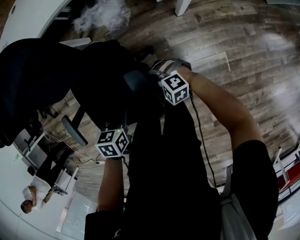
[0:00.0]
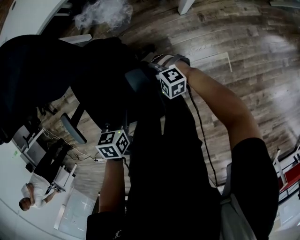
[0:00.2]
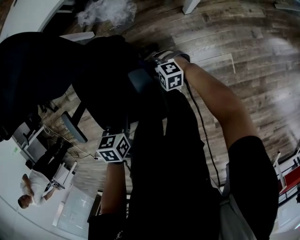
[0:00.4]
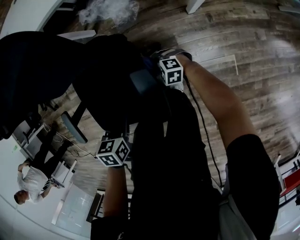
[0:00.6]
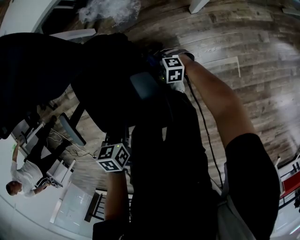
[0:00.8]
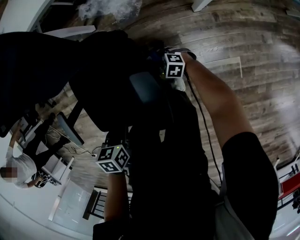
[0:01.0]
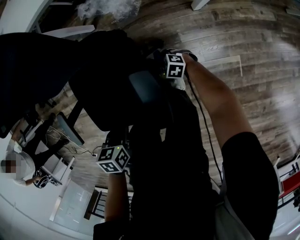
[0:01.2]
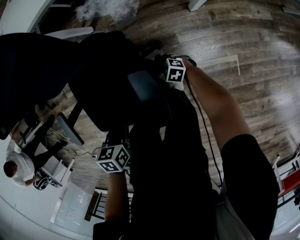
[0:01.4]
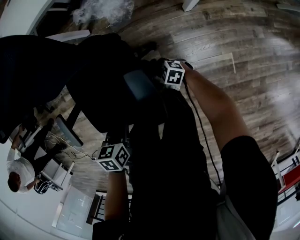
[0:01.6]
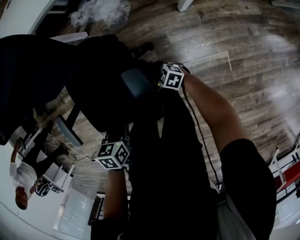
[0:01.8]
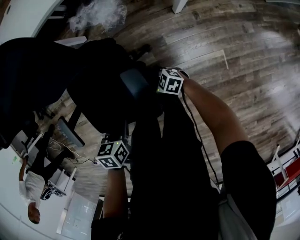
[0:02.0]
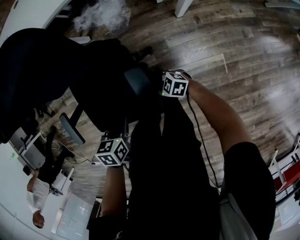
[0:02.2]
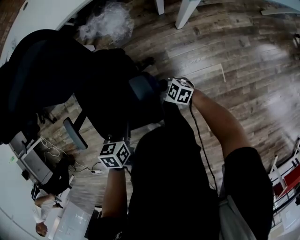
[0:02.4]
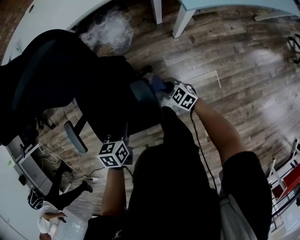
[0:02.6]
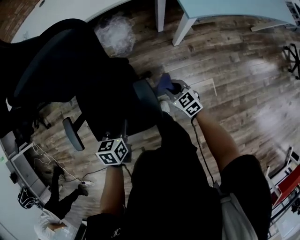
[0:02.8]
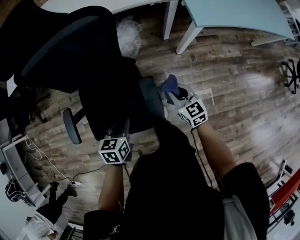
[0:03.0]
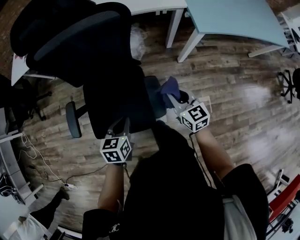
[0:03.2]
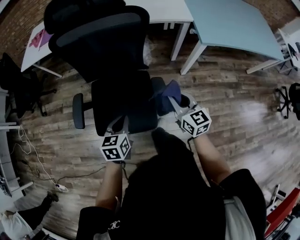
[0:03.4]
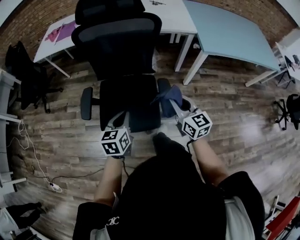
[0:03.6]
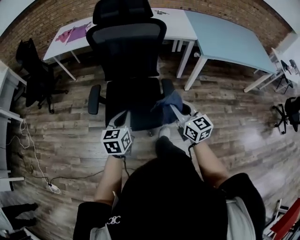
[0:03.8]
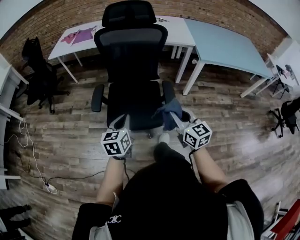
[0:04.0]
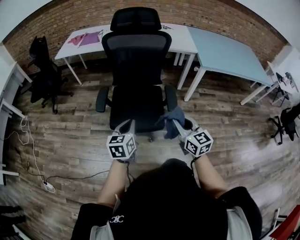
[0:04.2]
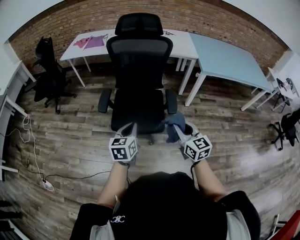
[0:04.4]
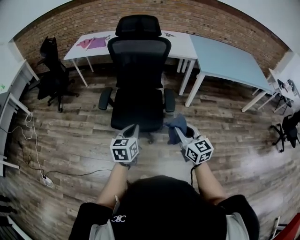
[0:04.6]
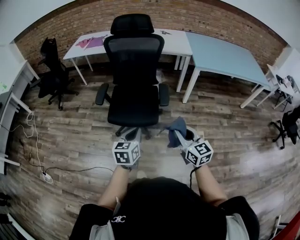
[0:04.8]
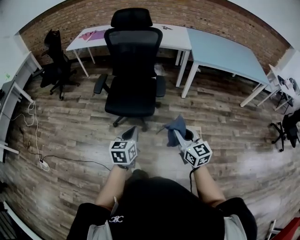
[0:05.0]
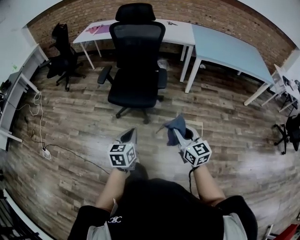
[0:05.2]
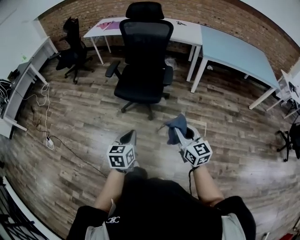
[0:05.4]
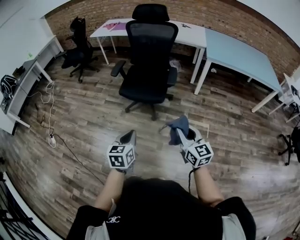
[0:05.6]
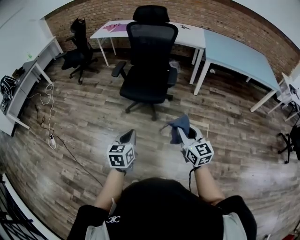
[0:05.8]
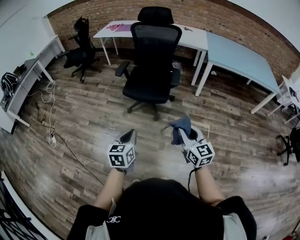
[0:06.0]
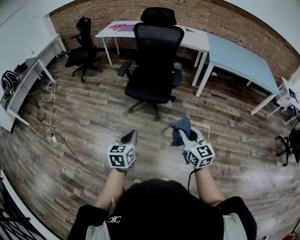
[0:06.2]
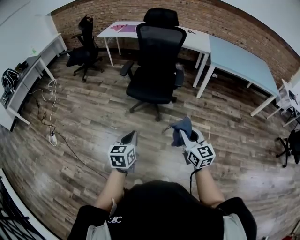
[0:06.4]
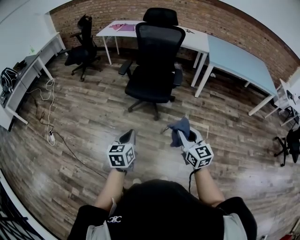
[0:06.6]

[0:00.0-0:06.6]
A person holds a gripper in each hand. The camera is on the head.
0:00.0 to 0:01.6: The right gripper is displaced downward by approximately 15 cm, and changes its angle by roughly 30 degrees, while the left gripper shifts by approximately 5 cm.
0:01.6 to 0:03.2: The left gripper heads upward, covering approximately 15 cm, and swivels roughly 30 degrees, while the right gripper moves upward, roughly 40 cm, and changes its angle by roughly 50 degrees.
0:03.2 to 0:05.0: The pair of grippers is taken backward, approximately 50 cm. The left gripper changes its angle by about 20 degrees.
0:05.0 to 0:06.6: The two grippers go some 20 cm backward and to the left.

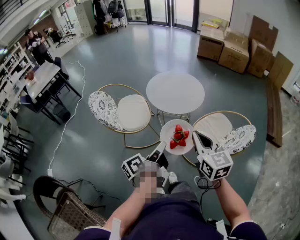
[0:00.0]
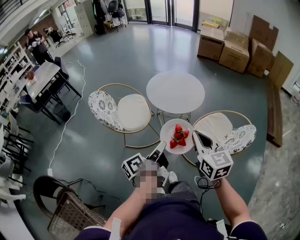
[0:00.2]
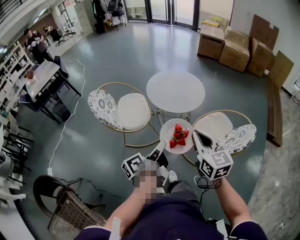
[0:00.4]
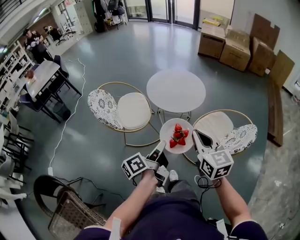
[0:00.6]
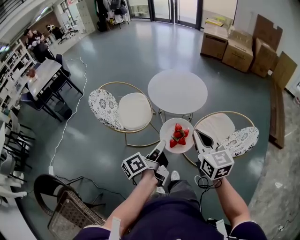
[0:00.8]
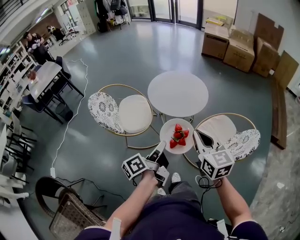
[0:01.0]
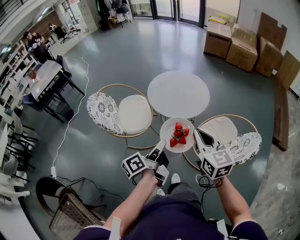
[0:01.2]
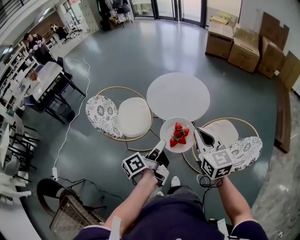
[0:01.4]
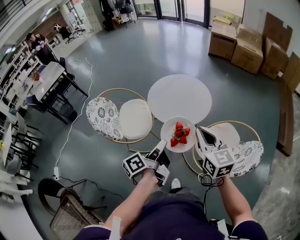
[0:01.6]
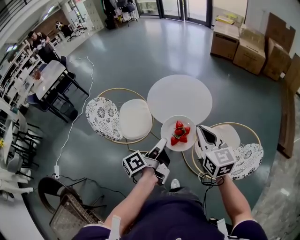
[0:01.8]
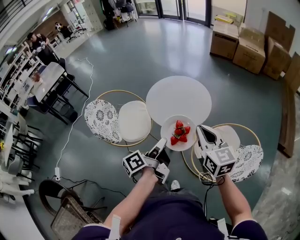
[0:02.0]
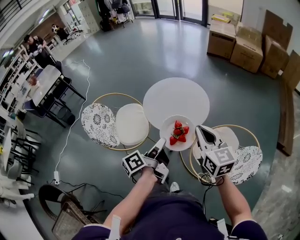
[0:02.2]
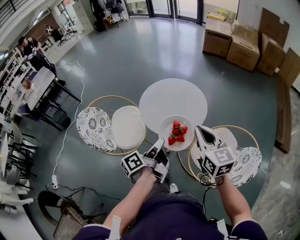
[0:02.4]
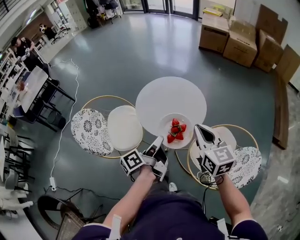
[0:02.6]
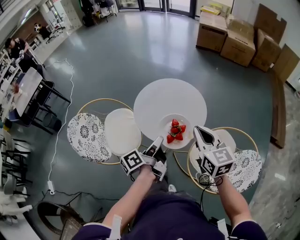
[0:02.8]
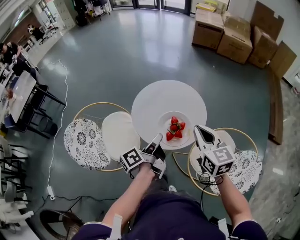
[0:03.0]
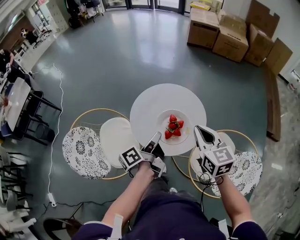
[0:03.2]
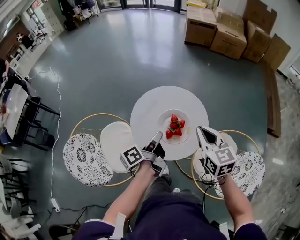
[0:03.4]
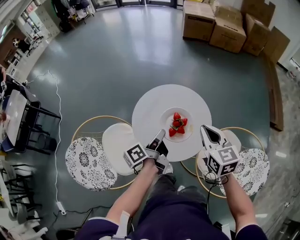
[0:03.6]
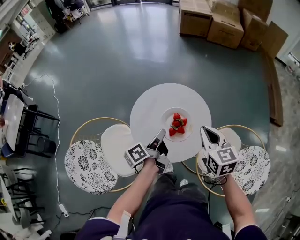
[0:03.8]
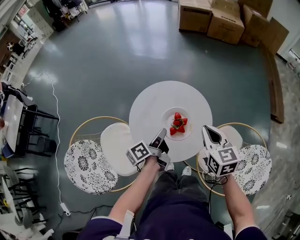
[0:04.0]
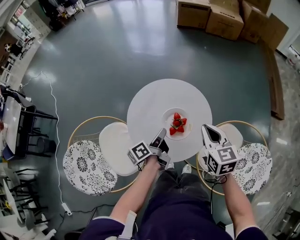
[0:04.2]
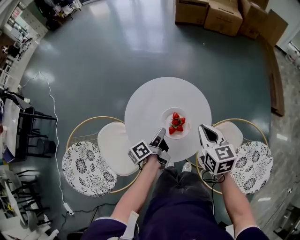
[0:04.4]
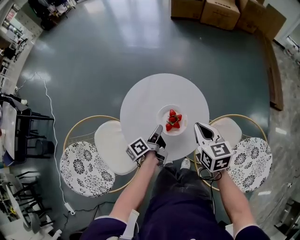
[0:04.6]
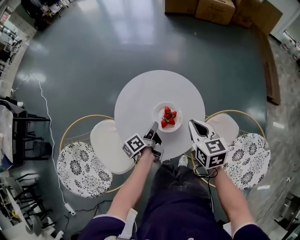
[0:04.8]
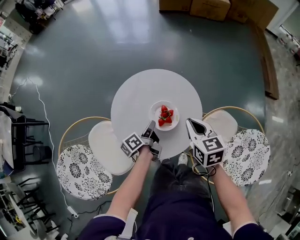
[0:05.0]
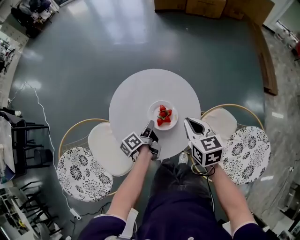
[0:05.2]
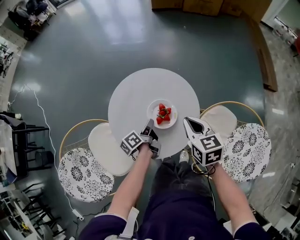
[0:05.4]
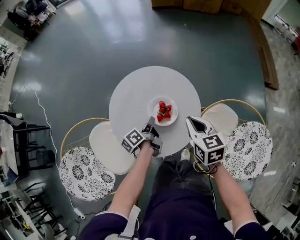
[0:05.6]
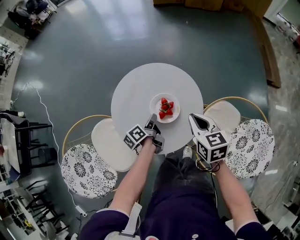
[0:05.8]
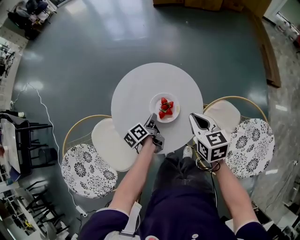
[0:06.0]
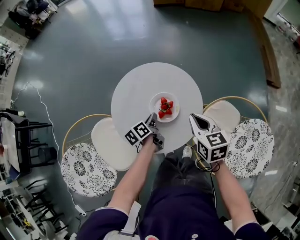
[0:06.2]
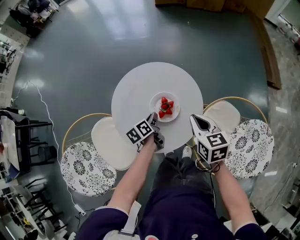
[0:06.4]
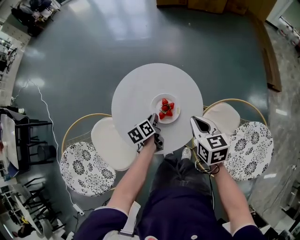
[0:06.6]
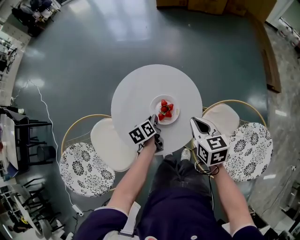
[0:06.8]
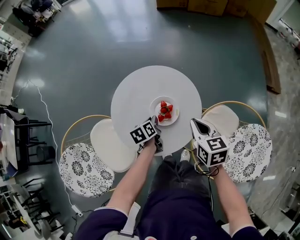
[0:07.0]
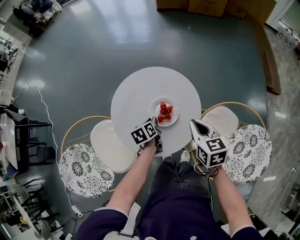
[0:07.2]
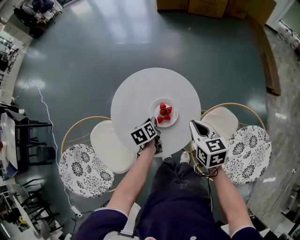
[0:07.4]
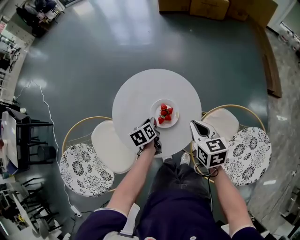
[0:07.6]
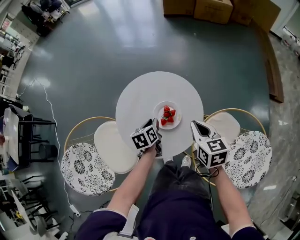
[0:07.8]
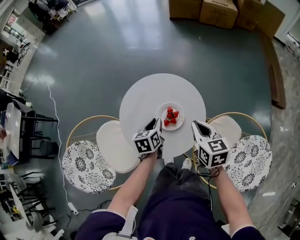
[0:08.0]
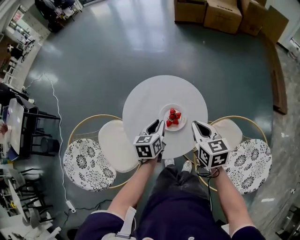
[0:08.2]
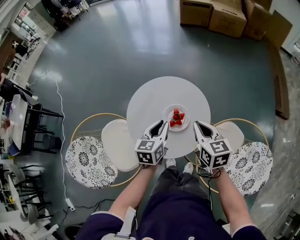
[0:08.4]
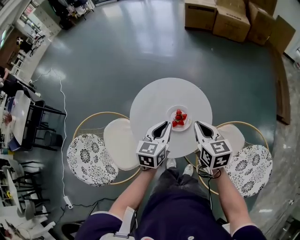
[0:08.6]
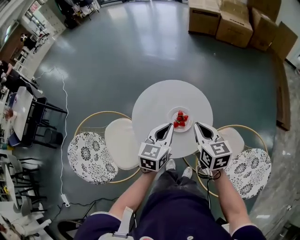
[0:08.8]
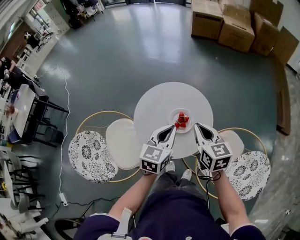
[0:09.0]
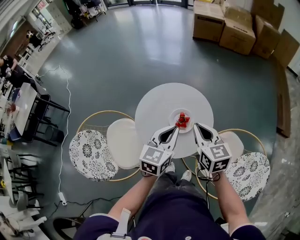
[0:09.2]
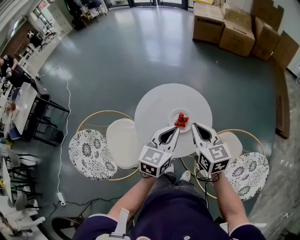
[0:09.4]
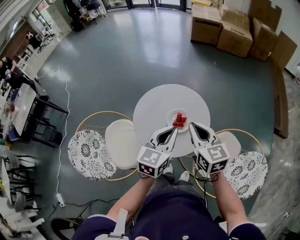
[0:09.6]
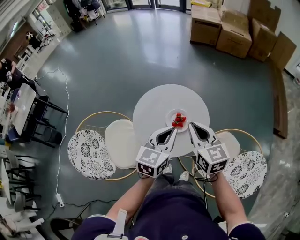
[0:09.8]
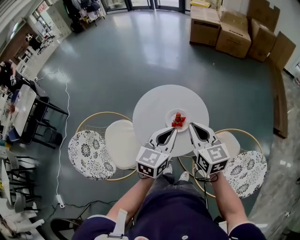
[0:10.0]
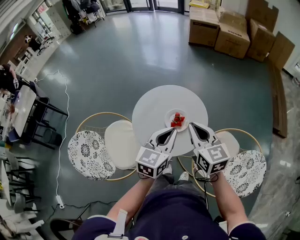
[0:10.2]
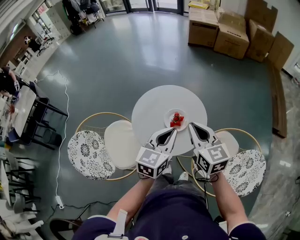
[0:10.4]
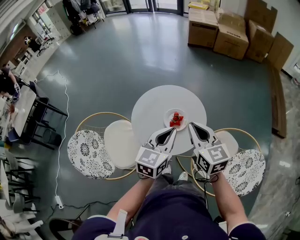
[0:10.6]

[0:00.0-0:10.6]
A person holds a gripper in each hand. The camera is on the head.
0:00.0 to 0:01.6: Both grippers move forward, approximately 15 cm.
0:01.6 to 0:03.0: The grippers both shift forward by some 20 cm.
0:03.0 to 0:04.6: Both grippers travel together downward and forward, approximately 20 cm. The right gripper turns by some 20 degrees.
0:04.6 to 0:06.0: The left gripper is displaced downward by approximately 5 cm.
0:06.0 to 0:07.6: The left gripper turns by about 30 degrees.
0:07.6 to 0:09.0: The right gripper moves upward and to the left, roughly 10 cm; the left gripper heads upward, covering roughly 20 cm, and swivels roughly 40 degrees.
0:09.0 to 0:10.6: The left gripper moves backward and upward, some 10 cm; the right gripper heads upward, covering roughly 5 cm.

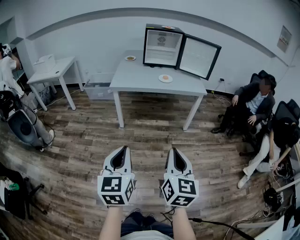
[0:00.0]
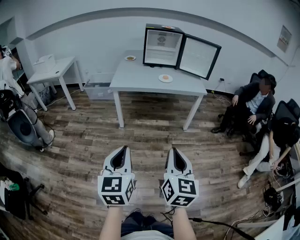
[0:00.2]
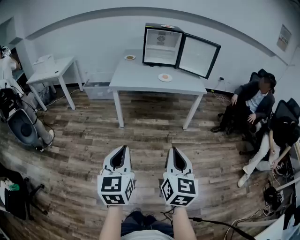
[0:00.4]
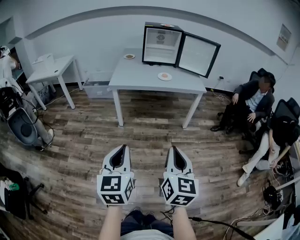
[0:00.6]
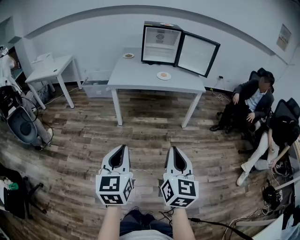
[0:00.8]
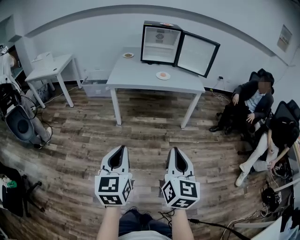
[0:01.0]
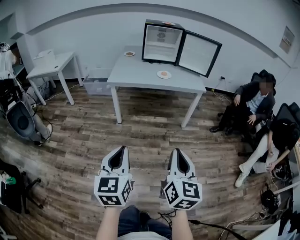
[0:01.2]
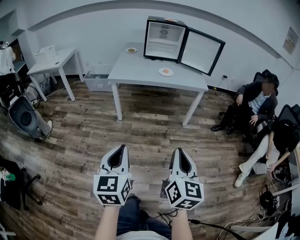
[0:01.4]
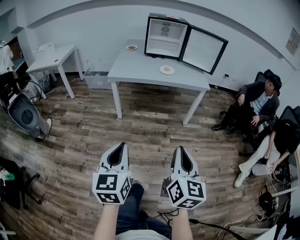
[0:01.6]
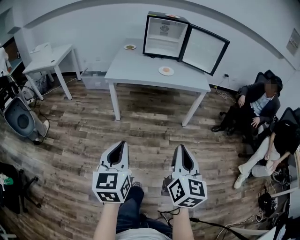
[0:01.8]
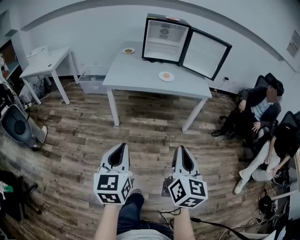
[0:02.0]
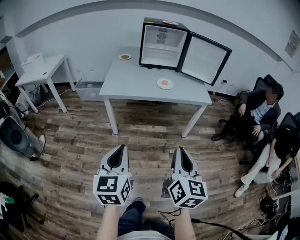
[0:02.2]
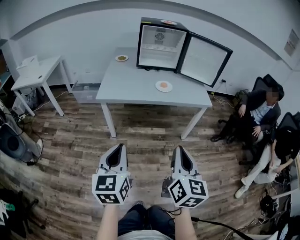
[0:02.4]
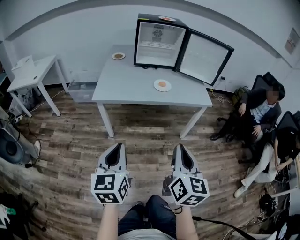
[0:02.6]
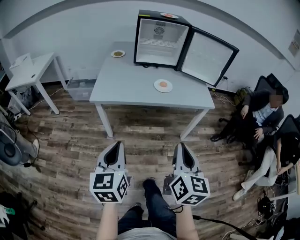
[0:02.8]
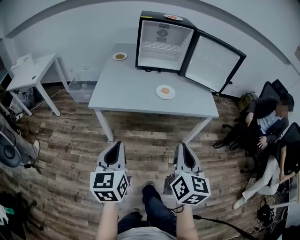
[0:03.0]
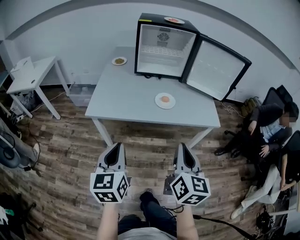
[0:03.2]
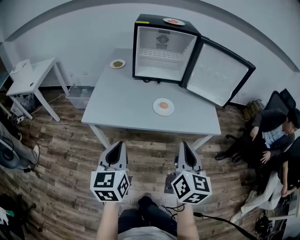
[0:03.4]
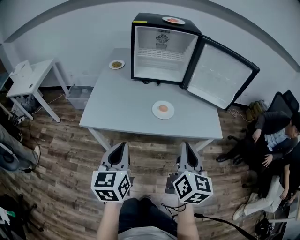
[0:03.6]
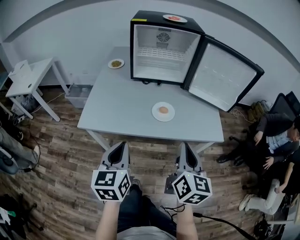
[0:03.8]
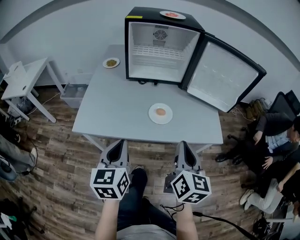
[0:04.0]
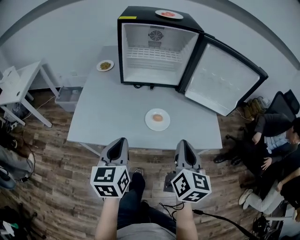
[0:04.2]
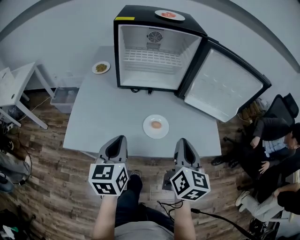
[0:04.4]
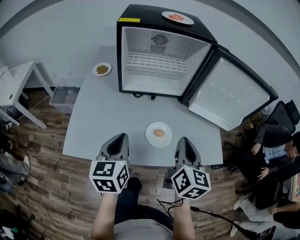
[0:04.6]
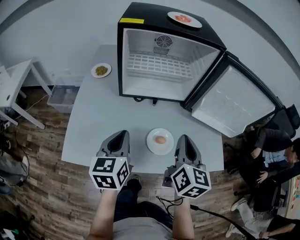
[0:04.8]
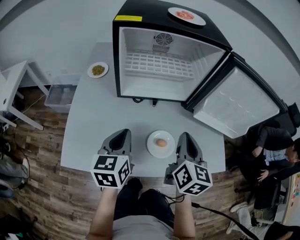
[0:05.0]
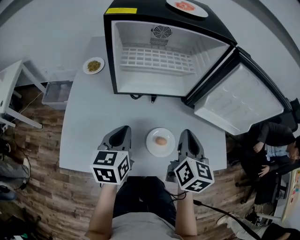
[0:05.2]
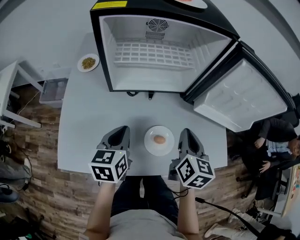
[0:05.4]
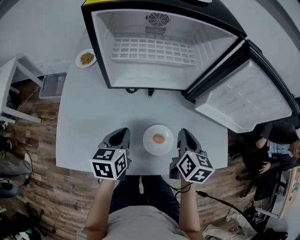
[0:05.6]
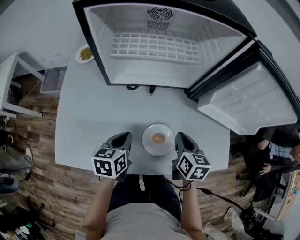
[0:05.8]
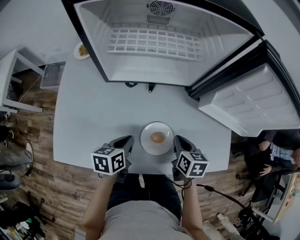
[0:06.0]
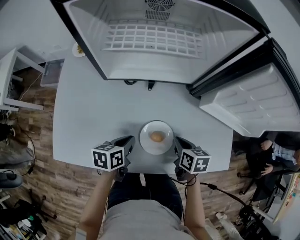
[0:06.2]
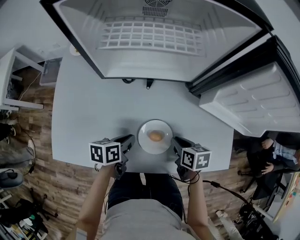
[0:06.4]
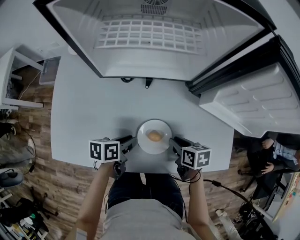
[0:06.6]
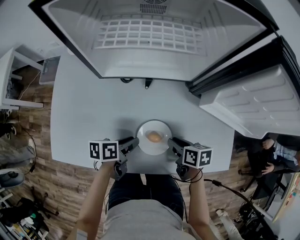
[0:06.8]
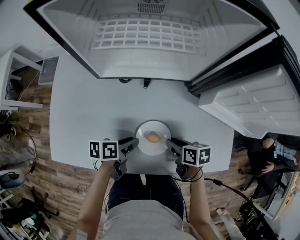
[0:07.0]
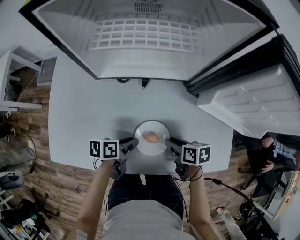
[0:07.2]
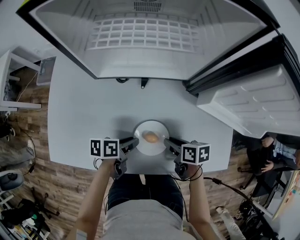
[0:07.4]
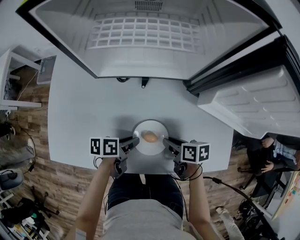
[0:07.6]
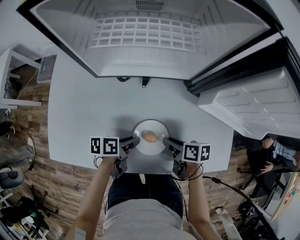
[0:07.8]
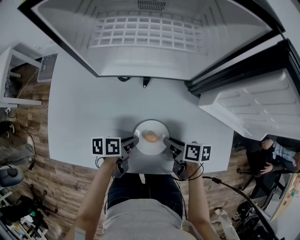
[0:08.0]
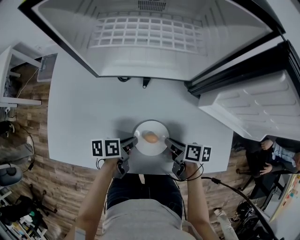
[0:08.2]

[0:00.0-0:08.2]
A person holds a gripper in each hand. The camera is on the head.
0:00.0 to 0:01.6: The right gripper goes some 5 cm to the right.
0:01.6 to 0:03.2: The two grippers travel together, forward, roughly 40 cm.
0:03.2 to 0:05.0: The pair of grippers is taken forward, approximately 40 cm.
0:05.0 to 0:06.6: The two grippers go roughly 25 cm downward. The left gripper changes its angle by about 50 degrees, and opens up; the right gripper points its fingers roughly 40 degrees further downward.
0:06.6 to 0:08.2: The right gripper rotates roughly 20 degrees.
